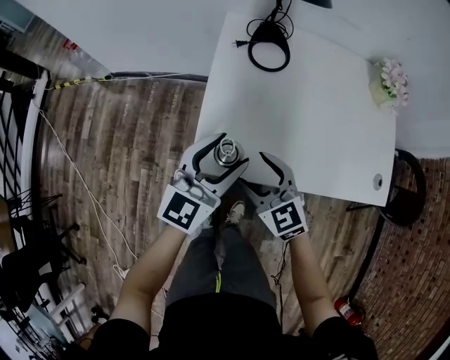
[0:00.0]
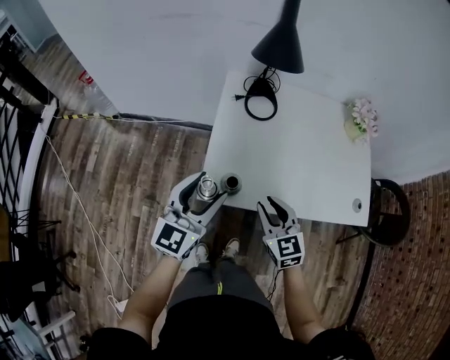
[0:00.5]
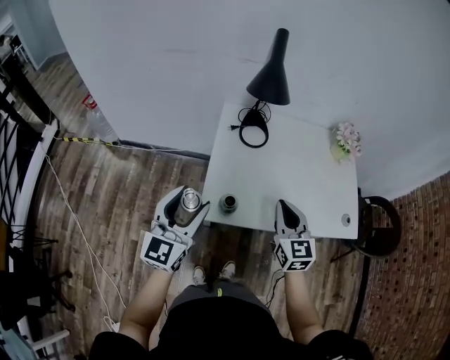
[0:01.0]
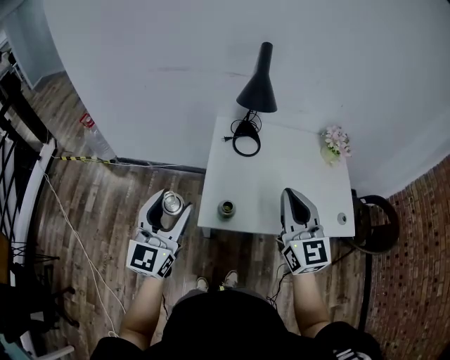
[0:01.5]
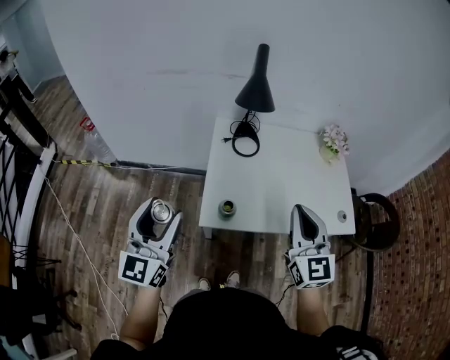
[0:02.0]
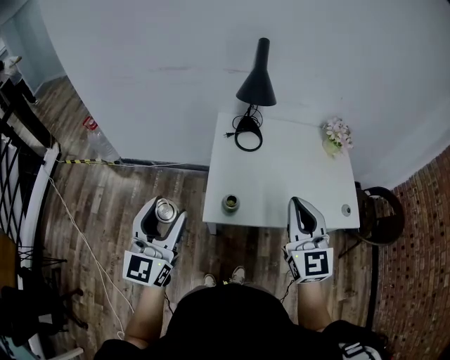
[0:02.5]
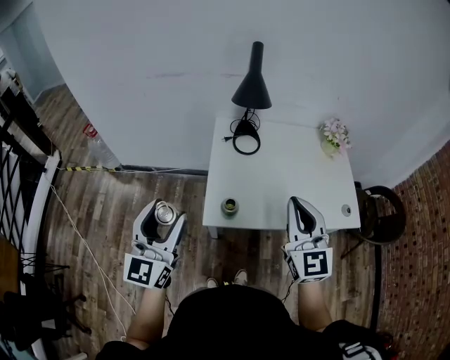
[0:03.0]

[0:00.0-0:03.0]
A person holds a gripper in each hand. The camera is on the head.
0:00.0 to 0:01.5: The right gripper moves upward, approximately 30 cm, turns by roughly 40 degrees, and closes; the left gripper is displaced upward and to the left by about 25 cm.
0:01.5 to 0:03.0: The grippers move only a little.

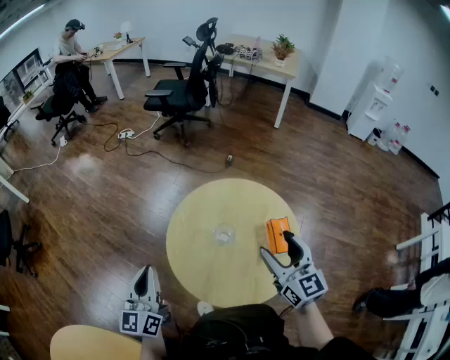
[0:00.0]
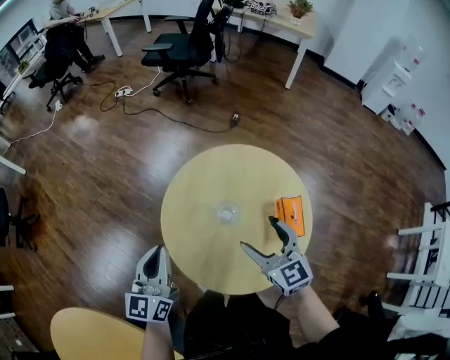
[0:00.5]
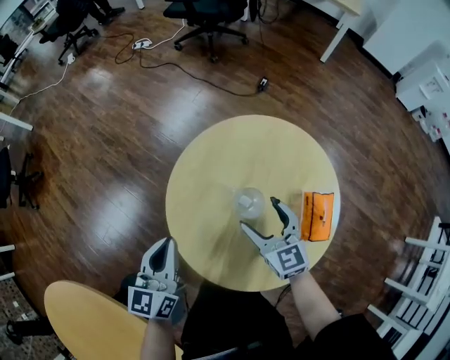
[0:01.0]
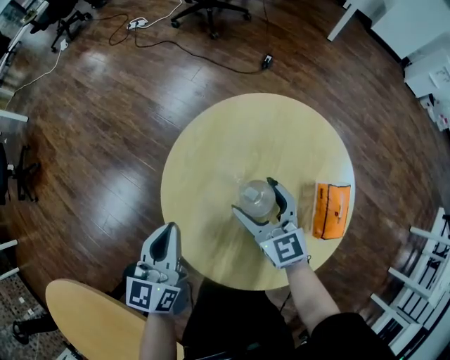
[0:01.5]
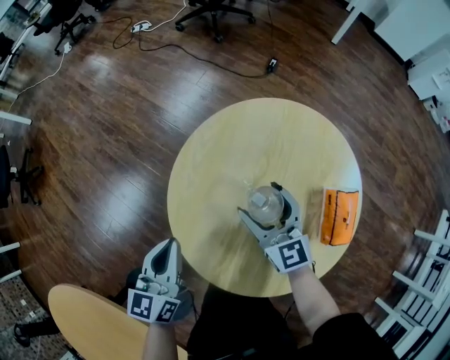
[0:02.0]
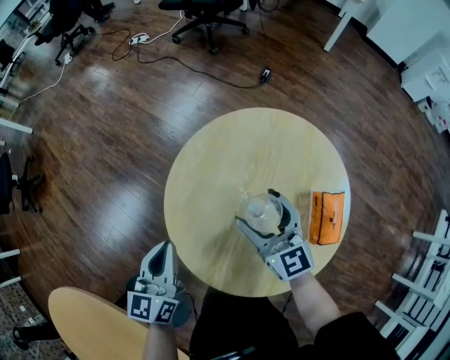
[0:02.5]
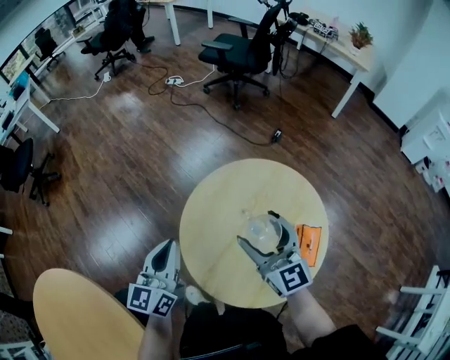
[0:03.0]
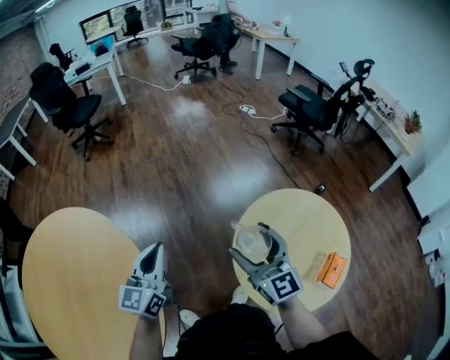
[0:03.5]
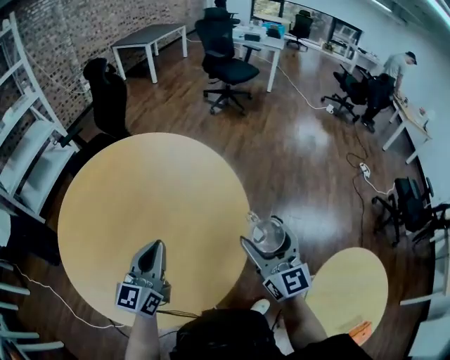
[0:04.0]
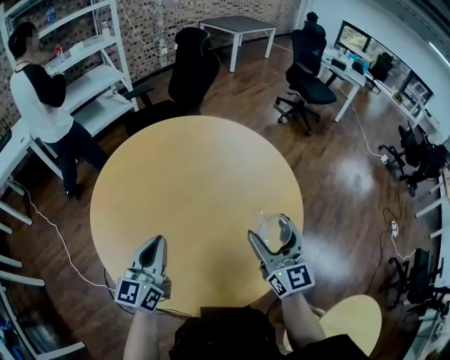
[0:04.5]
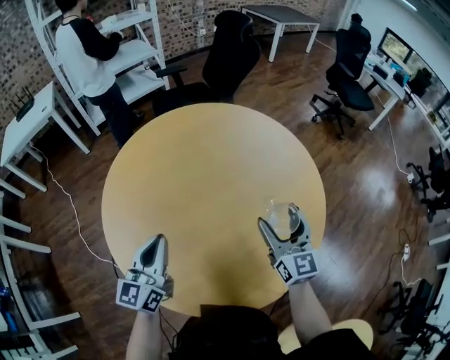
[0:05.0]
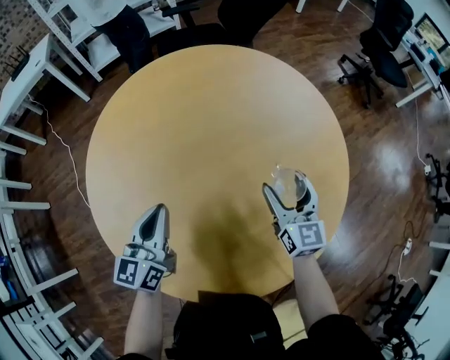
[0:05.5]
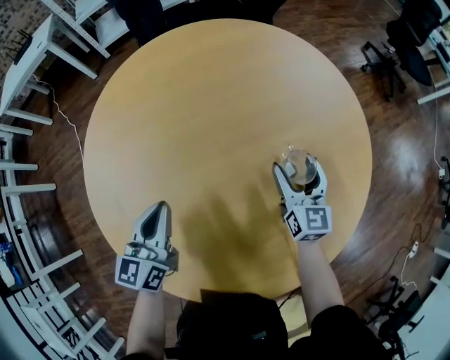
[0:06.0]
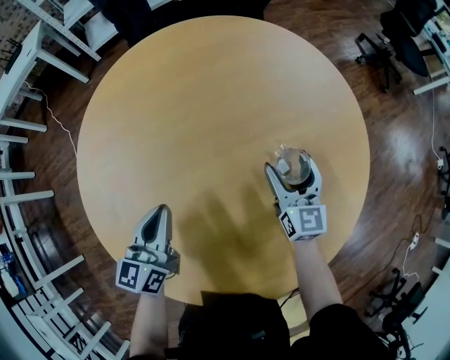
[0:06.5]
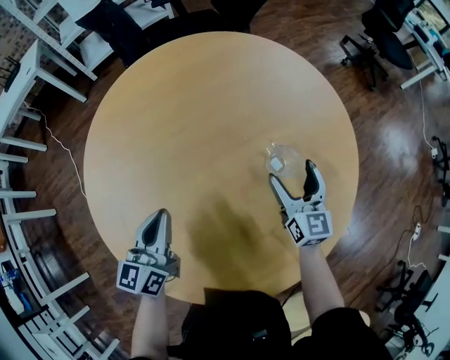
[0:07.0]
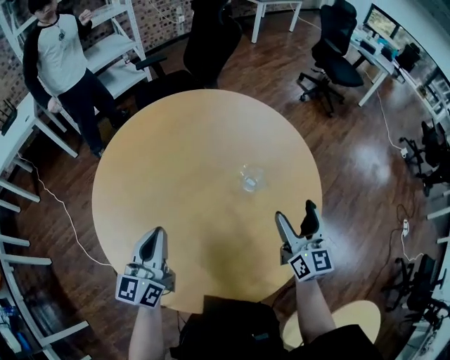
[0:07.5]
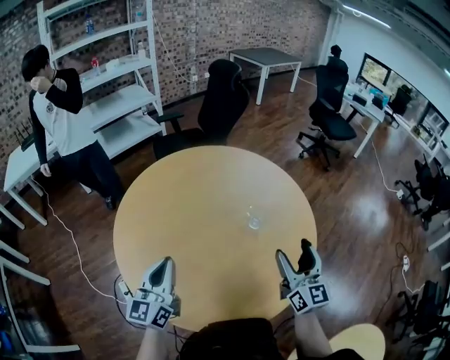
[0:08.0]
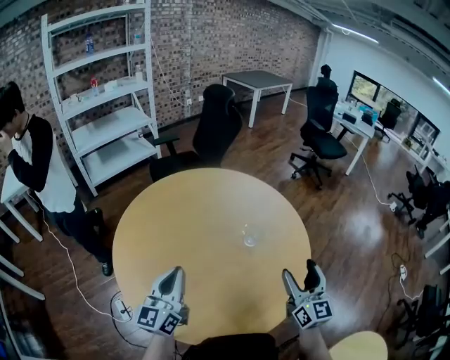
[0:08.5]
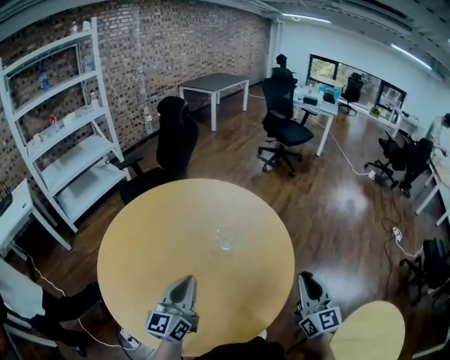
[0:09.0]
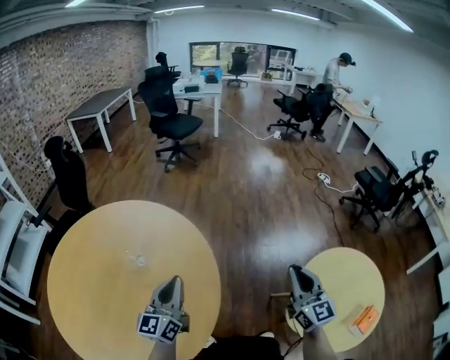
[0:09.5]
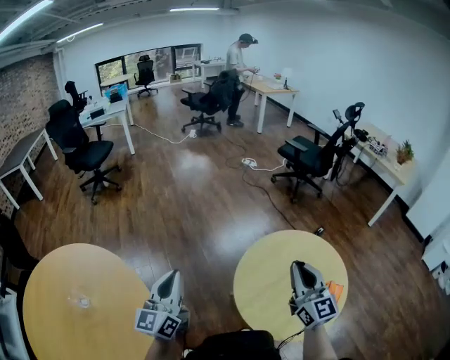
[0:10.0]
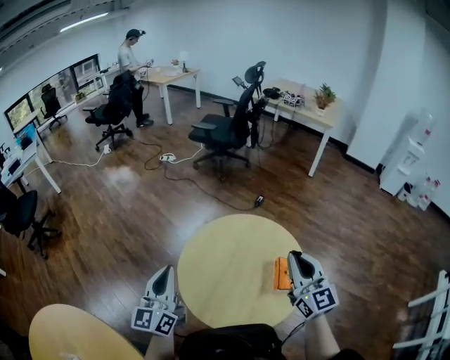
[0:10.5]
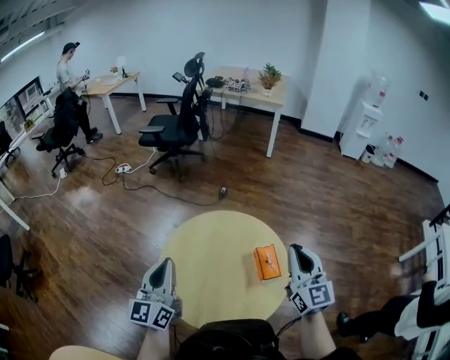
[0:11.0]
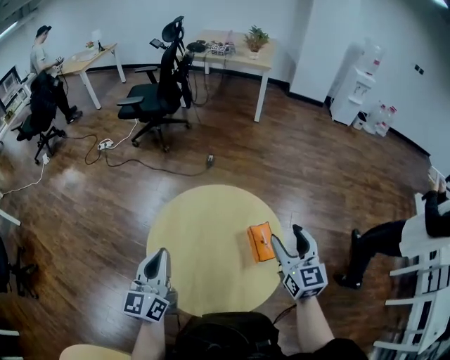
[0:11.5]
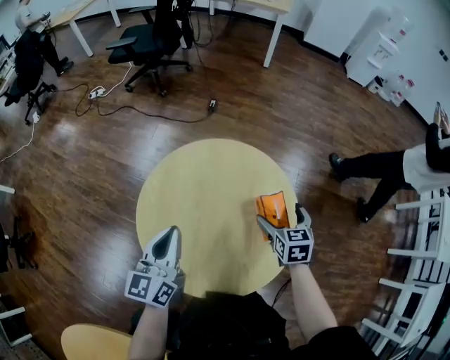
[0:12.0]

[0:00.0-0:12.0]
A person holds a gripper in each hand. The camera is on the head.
0:00.0 to 0:02.0: The left gripper moves downward, some 20 cm, and rotates about 20 degrees. The right gripper is displaced downward, forward and to the left by approximately 30 cm.
0:02.0 to 0:04.0: The two grippers travel together, approximately 60 cm. The left gripper changes its angle by about 80 degrees. Meanwhile the right gripper changes its angle by approximately 70 degrees.
0:04.0 to 0:06.0: The left gripper shifts by about 30 cm, and rotates about 50 degrees. The right gripper ends up approximately 40 cm from where it was, and rotates about 30 degrees.
0:06.0 to 0:08.0: The right gripper moves upward and backward, about 30 cm, and swivels roughly 20 degrees, while the left gripper goes roughly 15 cm upward and backward, and changes its angle by some 20 degrees.
0:08.0 to 0:10.0: The left gripper shifts by about 60 cm, and rotates about 70 degrees; the right gripper shifts by some 60 cm, swivels roughly 70 degrees, and closes.
0:10.0 to 0:12.0: The left gripper shifts by roughly 40 cm, and swivels roughly 60 degrees; the right gripper changes place by about 40 cm, tips its fingers downward by some 50 degrees, and opens its fingers.

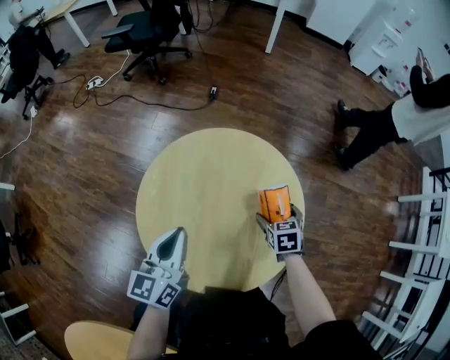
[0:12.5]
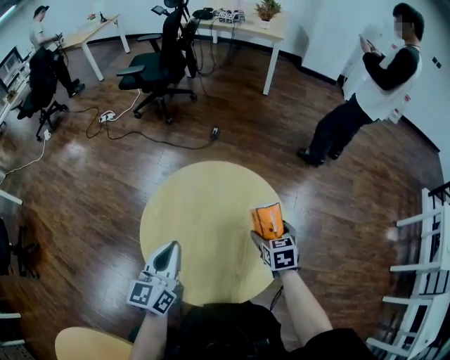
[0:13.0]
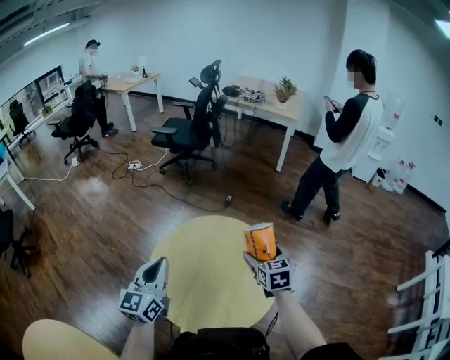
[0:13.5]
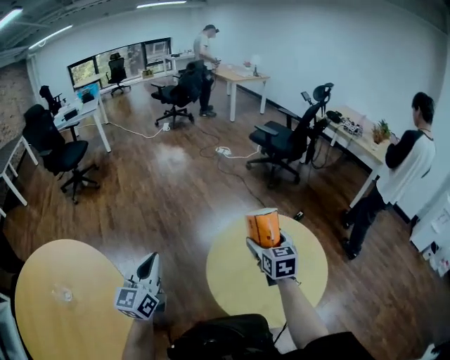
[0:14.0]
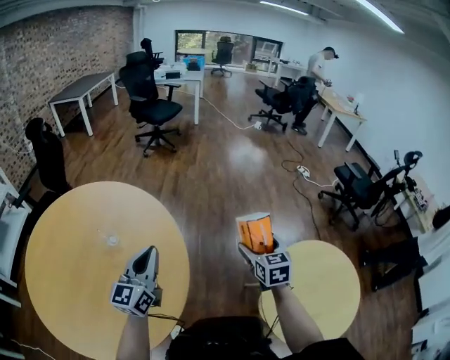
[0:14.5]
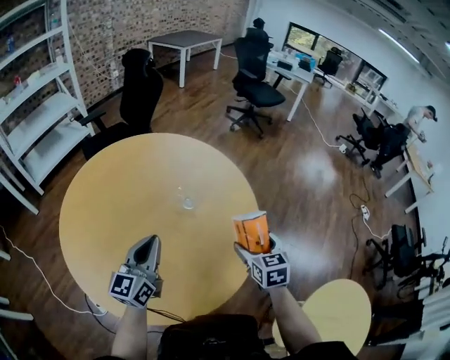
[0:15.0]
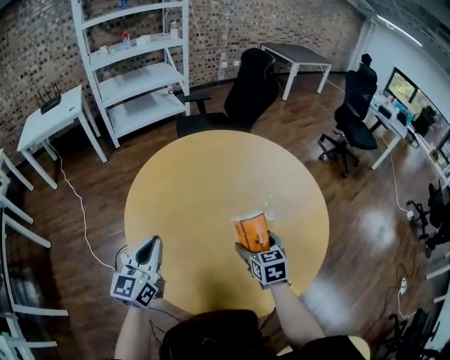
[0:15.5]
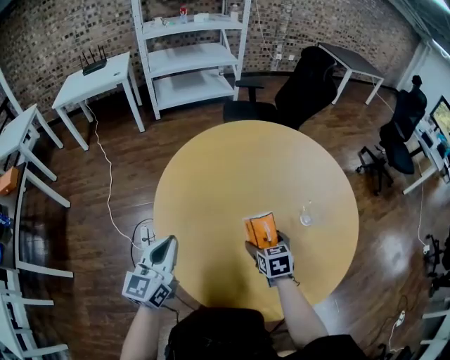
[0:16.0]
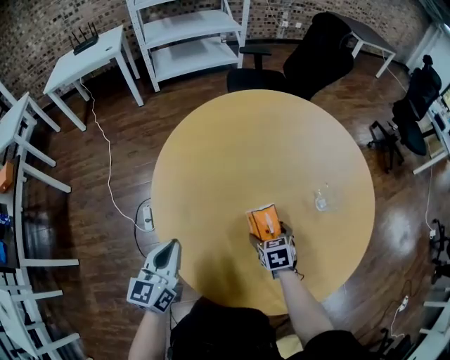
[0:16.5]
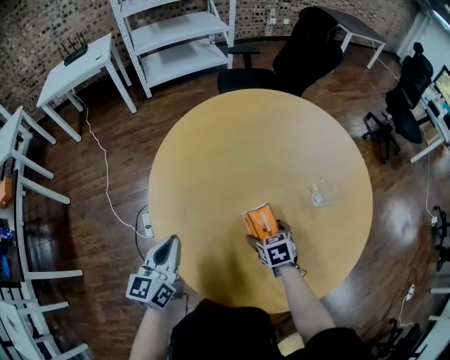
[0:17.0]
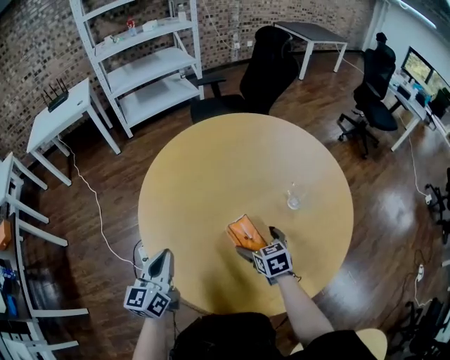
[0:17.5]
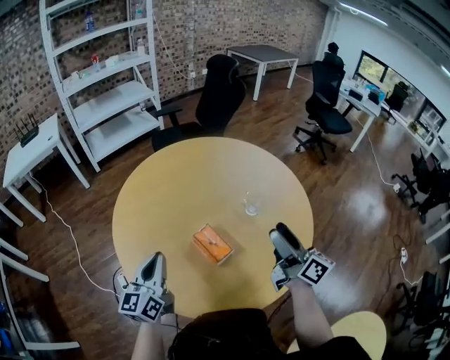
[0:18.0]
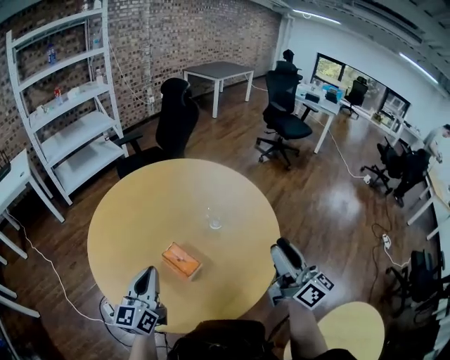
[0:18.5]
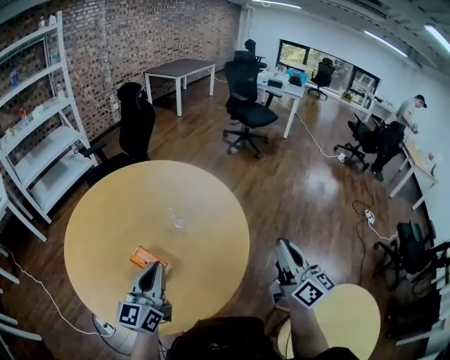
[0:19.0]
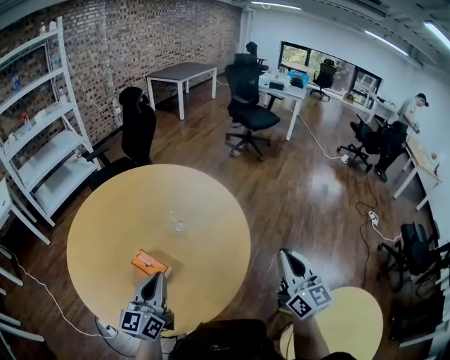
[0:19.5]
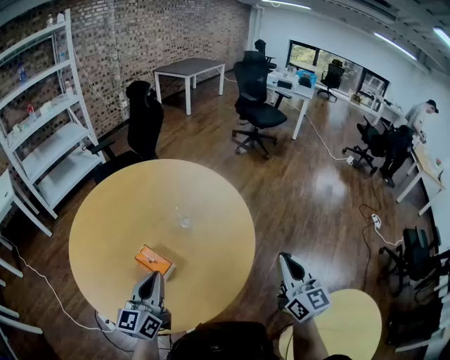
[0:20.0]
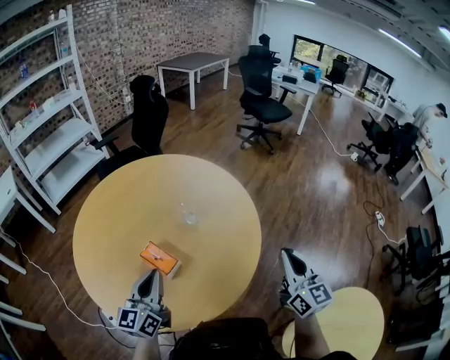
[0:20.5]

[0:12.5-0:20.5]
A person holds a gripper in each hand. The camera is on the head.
0:12.5 to 0:14.5: The right gripper ends up some 60 cm from where it was, and tips its fingers upward by approximately 30 degrees; the left gripper ends up roughly 60 cm from where it was, and changes its angle by about 80 degrees.
0:14.5 to 0:16.5: The pair of grippers is taken some 50 cm. The left gripper changes its angle by about 70 degrees. Meanwhile the right gripper swivels about 80 degrees.
0:16.5 to 0:18.5: The left gripper shifts approximately 20 cm to the right and upward, and rotates some 30 degrees, while the right gripper travels upward, to the right and backward by about 50 cm, points its fingers about 70 degrees further upward, and closes.
0:18.5 to 0:20.5: The grippers both shift to the right by roughly 10 cm. The right gripper changes its angle by roughly 30 degrees, and closes up.

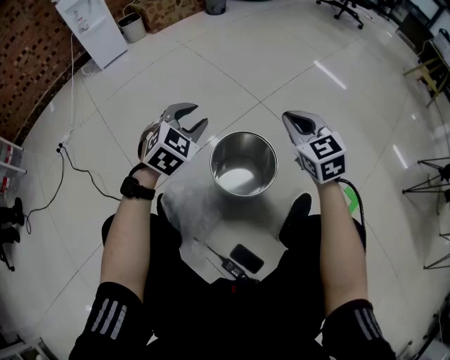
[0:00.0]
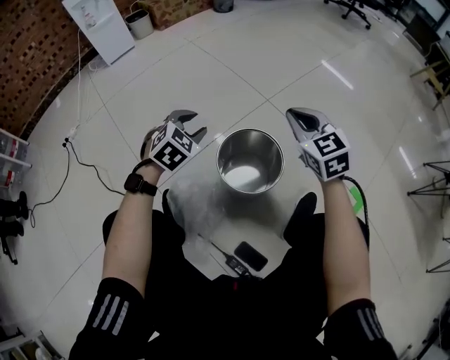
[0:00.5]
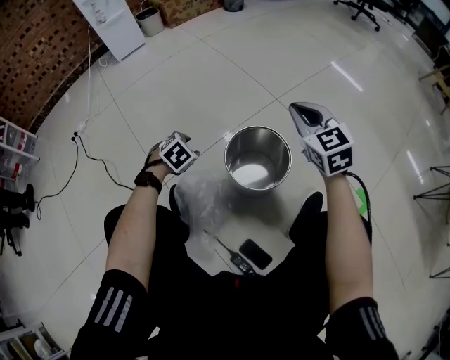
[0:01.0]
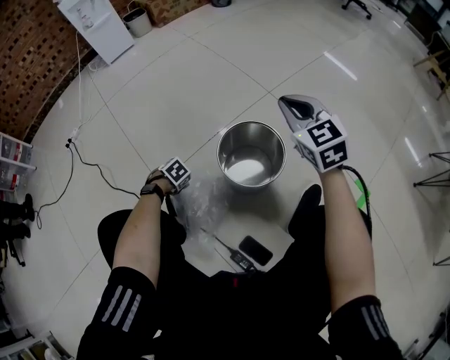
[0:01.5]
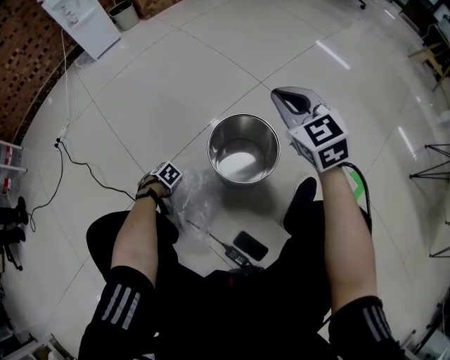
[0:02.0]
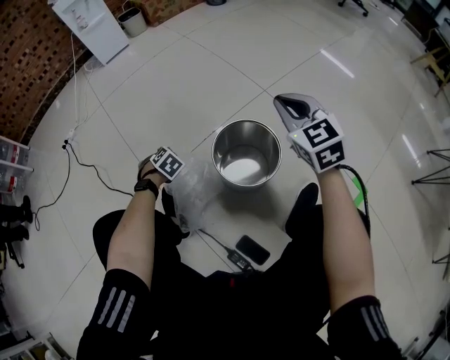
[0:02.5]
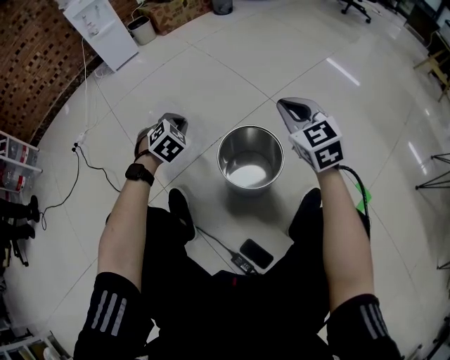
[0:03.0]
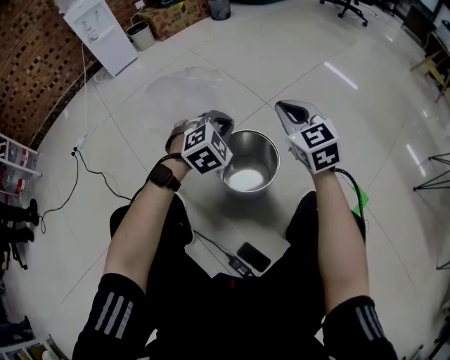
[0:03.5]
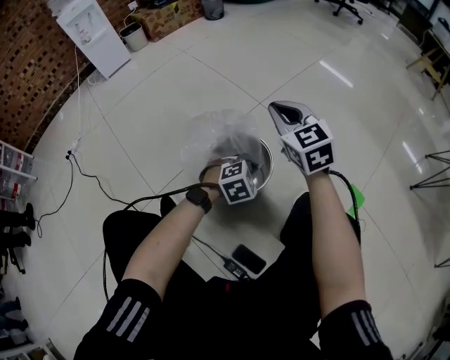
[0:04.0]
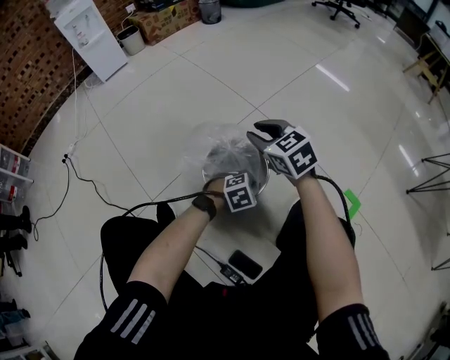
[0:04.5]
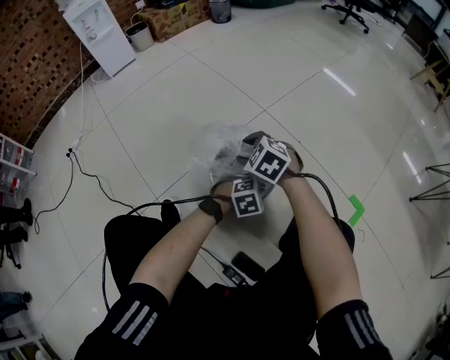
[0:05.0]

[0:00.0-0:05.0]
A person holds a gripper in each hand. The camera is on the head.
0:00.0 to 0:02.5: The left gripper is displaced downward by about 25 cm, tips its fingers downward by approximately 40 degrees, and closes its fingers.
0:02.5 to 0:05.0: The left gripper goes upward and returns, about 25 cm each way, and turns by about 40 degrees. The right gripper moves downward, some 15 cm, turns by roughly 30 degrees, and opens.
